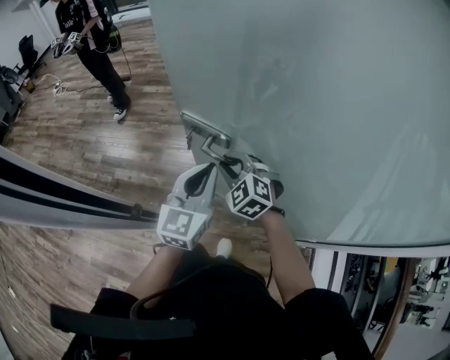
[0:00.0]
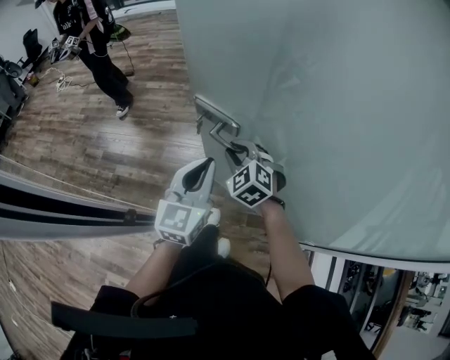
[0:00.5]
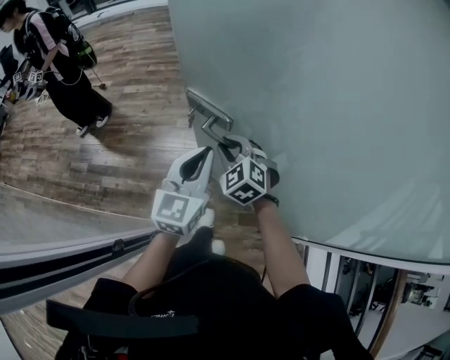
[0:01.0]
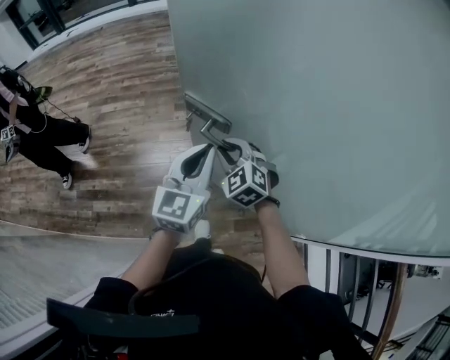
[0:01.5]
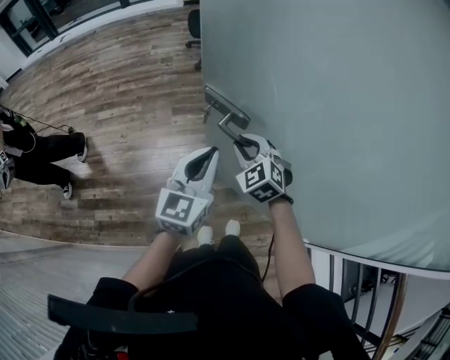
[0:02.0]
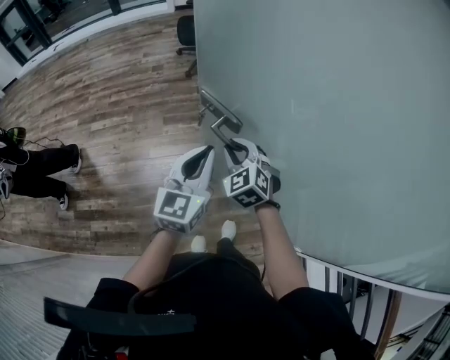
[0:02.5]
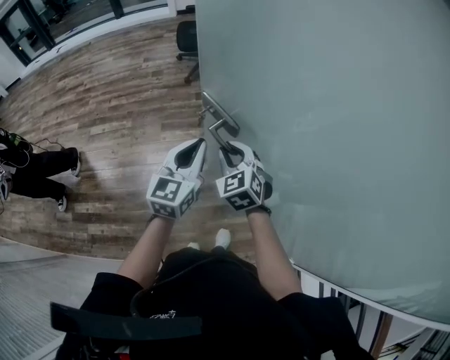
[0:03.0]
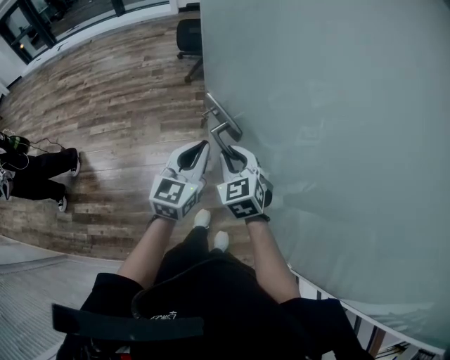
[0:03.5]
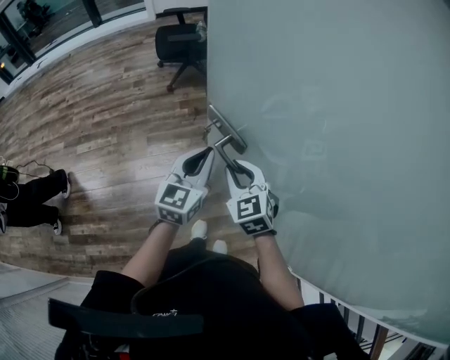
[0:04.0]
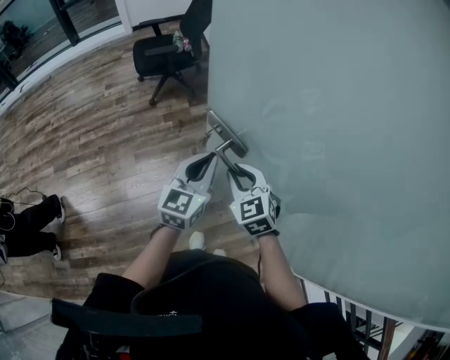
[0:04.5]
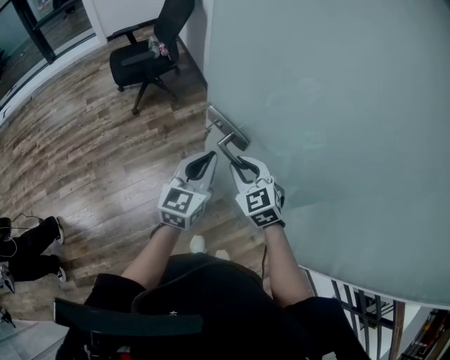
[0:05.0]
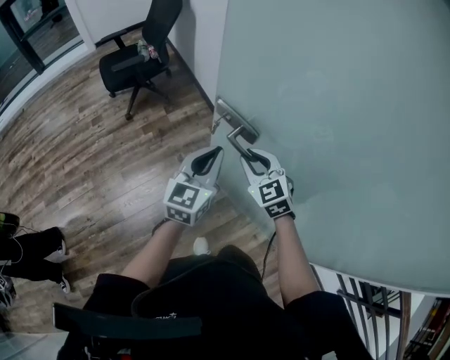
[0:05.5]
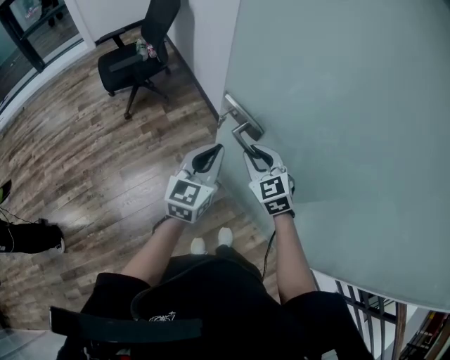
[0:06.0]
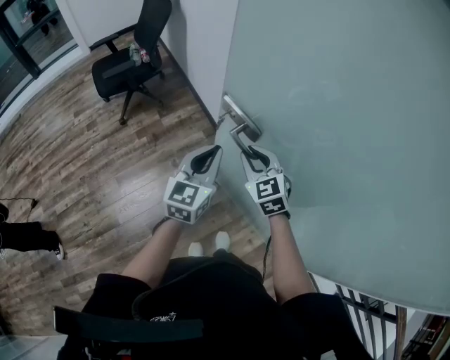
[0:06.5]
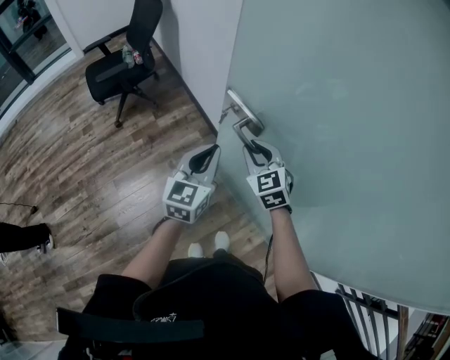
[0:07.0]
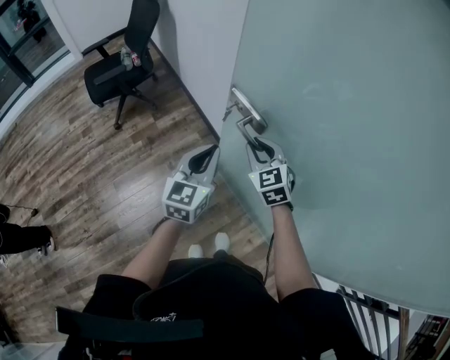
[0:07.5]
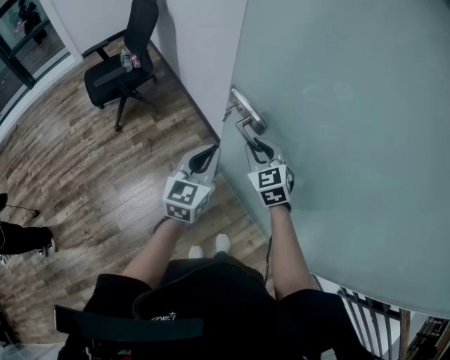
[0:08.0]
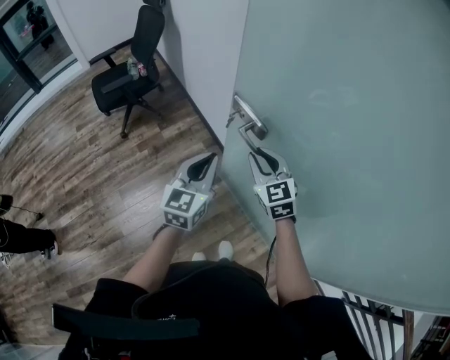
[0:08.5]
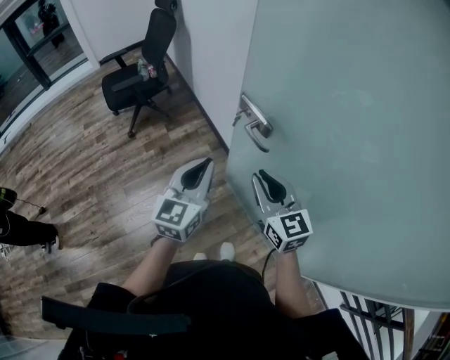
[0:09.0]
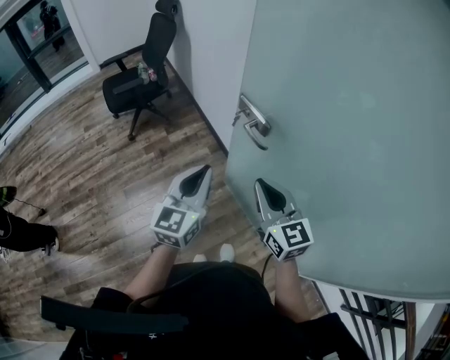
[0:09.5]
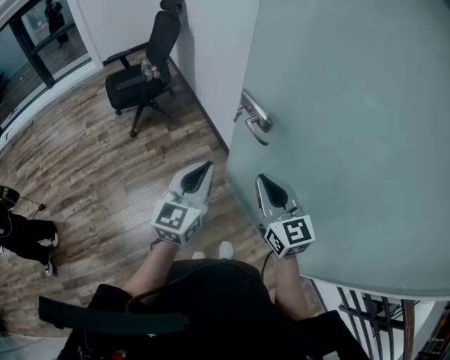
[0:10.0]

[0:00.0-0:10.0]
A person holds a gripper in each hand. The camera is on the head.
0:00.0 to 0:02.0: Both grippers travel together forward and to the right, about 30 cm. The right gripper swivels approximately 20 degrees.
0:02.0 to 0:04.0: Both grippers move forward and to the right, roughly 25 cm. The right gripper changes its angle by approximately 20 degrees.
0:04.0 to 0:06.0: Both grippers travel together forward and to the right, roughly 15 cm.
0:06.0 to 0:08.0: The left gripper moves about 5 cm, while the right gripper goes roughly 5 cm forward.
0:08.0 to 0:10.0: The right gripper travels backward and upward by roughly 20 cm, and turns by roughly 30 degrees; the left gripper shifts approximately 10 cm backward and upward.

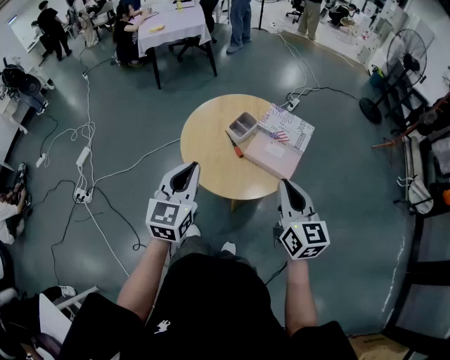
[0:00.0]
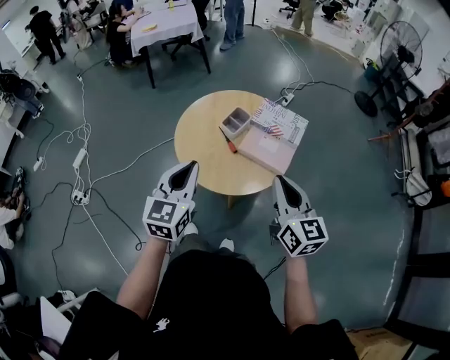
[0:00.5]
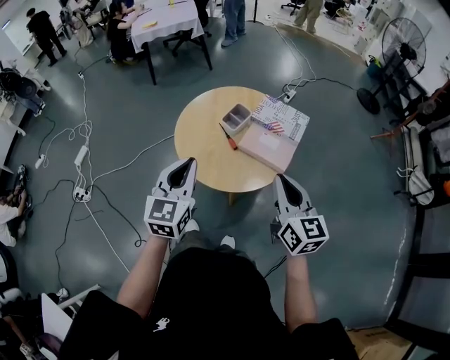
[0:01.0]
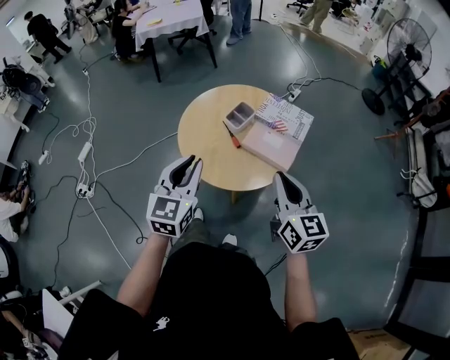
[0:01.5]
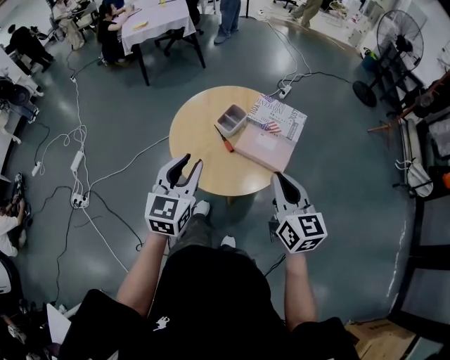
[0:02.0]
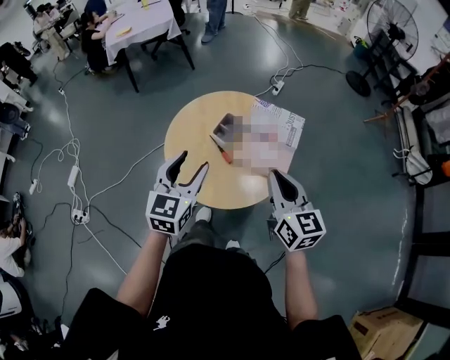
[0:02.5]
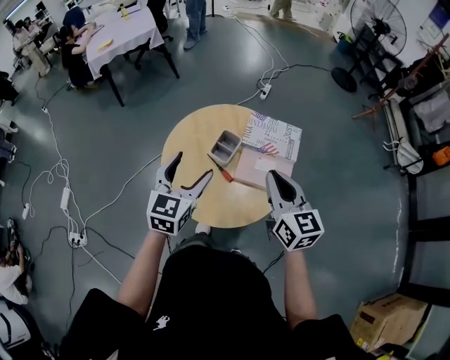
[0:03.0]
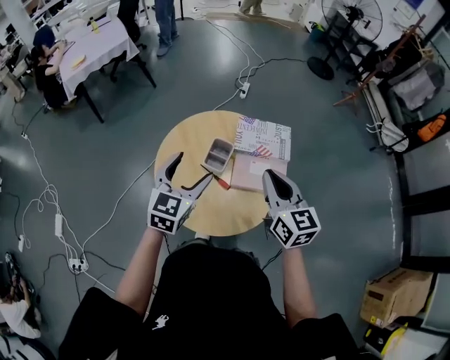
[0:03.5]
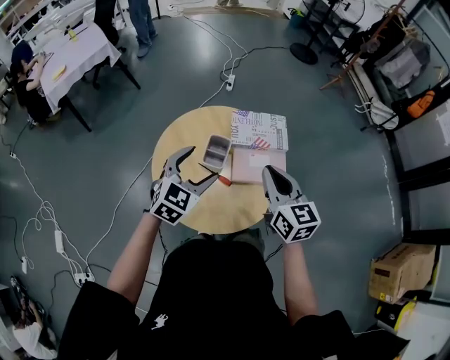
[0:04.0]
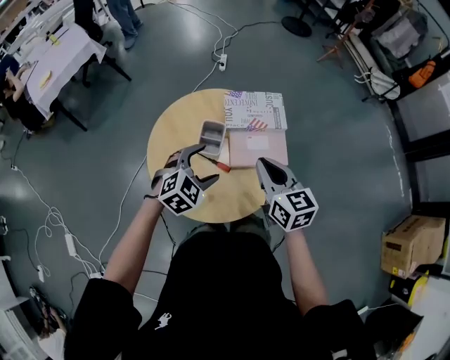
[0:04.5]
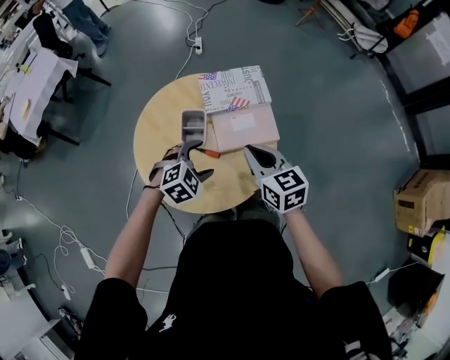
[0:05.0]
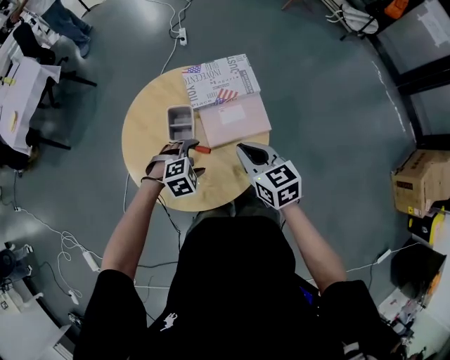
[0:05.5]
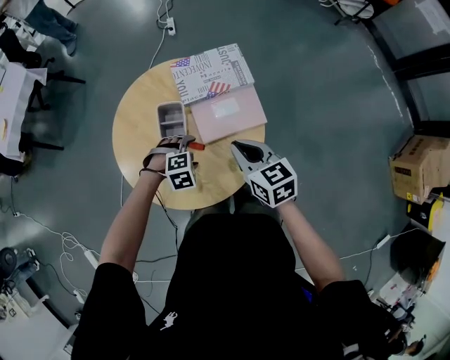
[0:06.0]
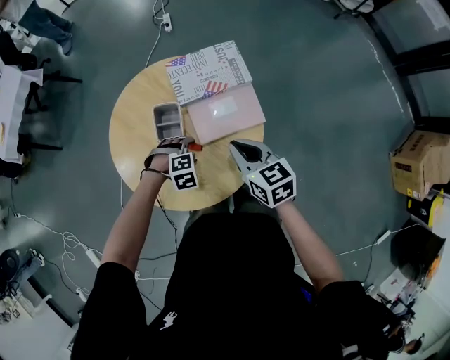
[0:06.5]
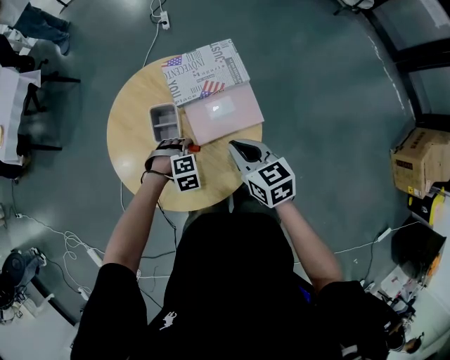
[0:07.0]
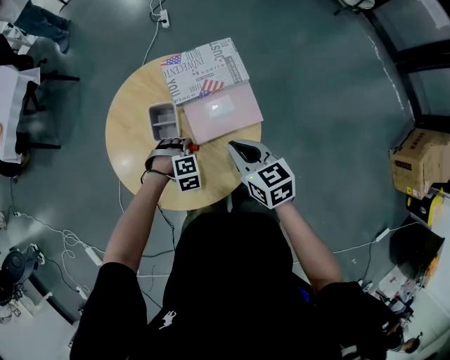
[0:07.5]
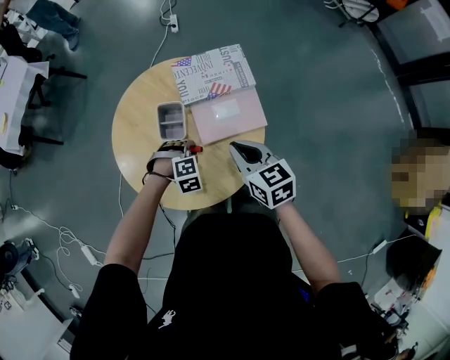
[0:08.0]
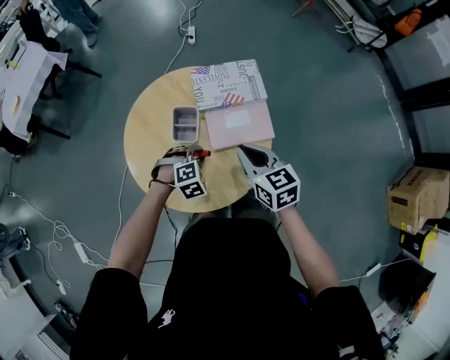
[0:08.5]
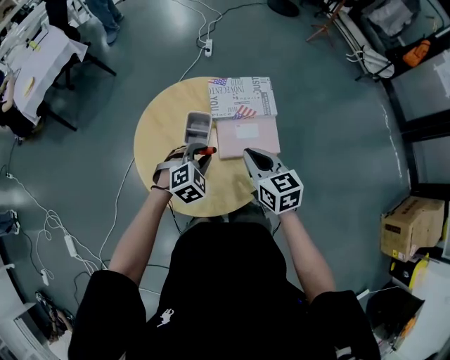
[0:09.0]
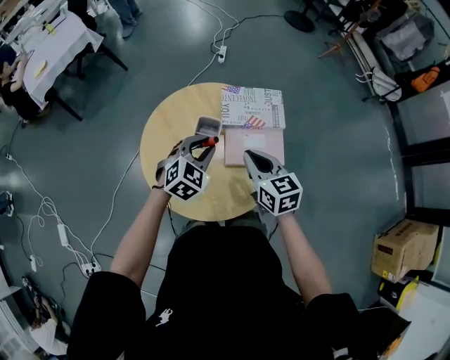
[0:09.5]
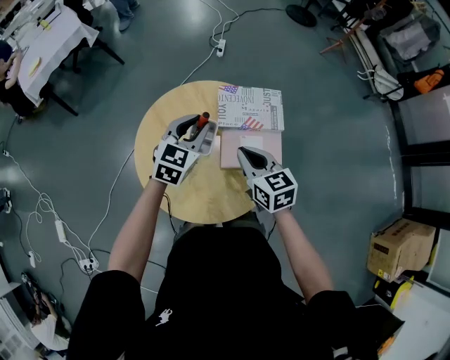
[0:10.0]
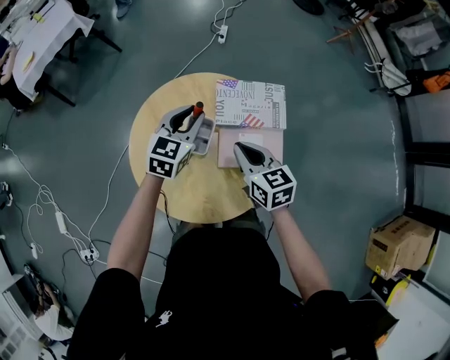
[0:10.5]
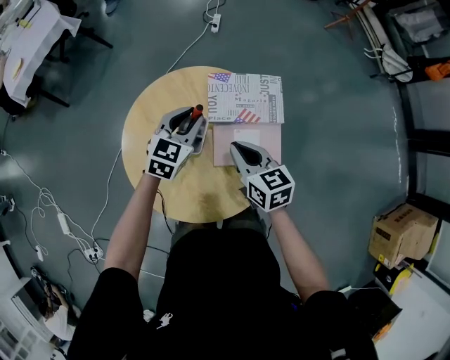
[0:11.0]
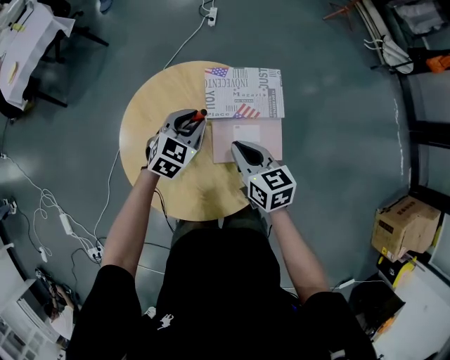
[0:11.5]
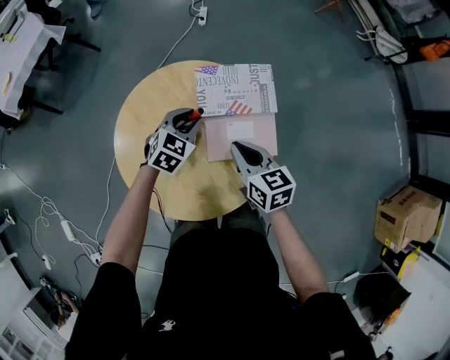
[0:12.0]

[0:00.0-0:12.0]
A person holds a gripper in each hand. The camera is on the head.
0:00.0 to 0:02.0: There are only small adjustments of the grippers.
0:02.0 to 0:04.0: The right gripper shifts by some 20 cm, and rotates approximately 20 degrees. The left gripper shifts by about 20 cm, turns by approximately 50 degrees, and opens its fingers.
0:04.0 to 0:06.0: The right gripper is displaced downward by roughly 15 cm. Meanwhile the left gripper travels downward by approximately 25 cm, and points its fingers approximately 50 degrees further downward.
0:06.0 to 0:08.0: The left gripper closes its fingers.
0:08.0 to 0:10.0: The right gripper shifts roughly 10 cm forward and to the left, while the left gripper shifts about 25 cm upward and forward, and tilts its fingers about 50 degrees upward.
0:10.0 to 0:12.0: The left gripper goes roughly 15 cm downward, and swivels some 20 degrees, while the right gripper heads downward, covering some 5 cm.

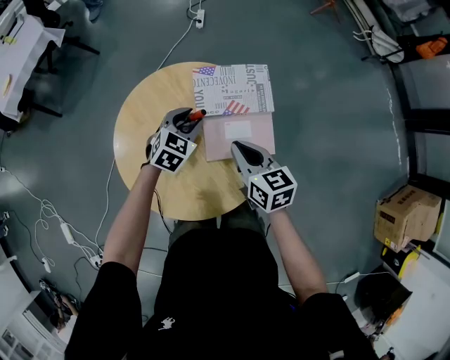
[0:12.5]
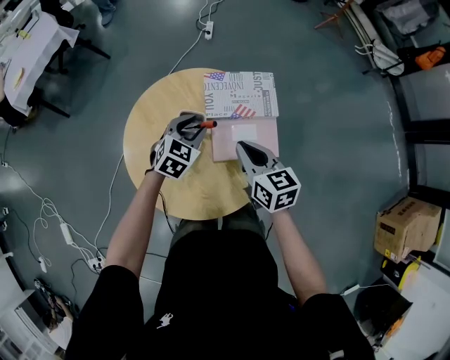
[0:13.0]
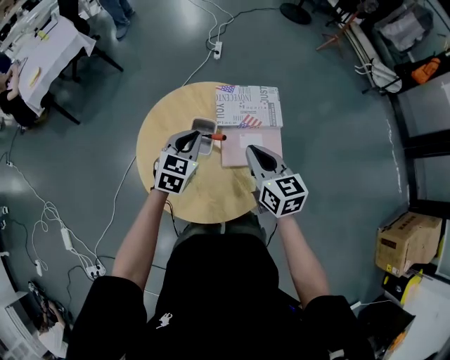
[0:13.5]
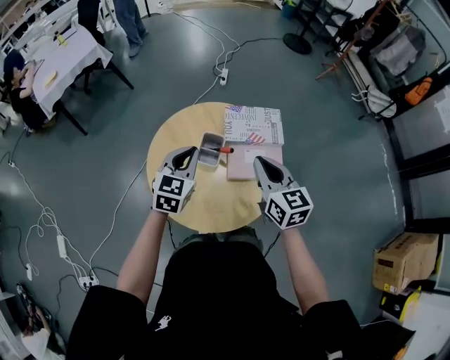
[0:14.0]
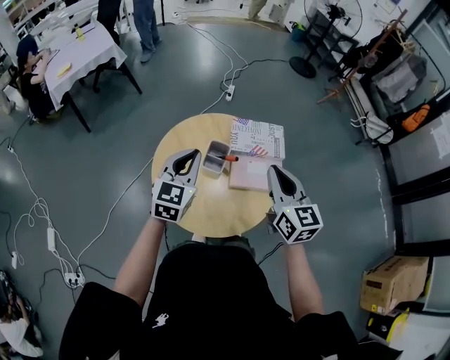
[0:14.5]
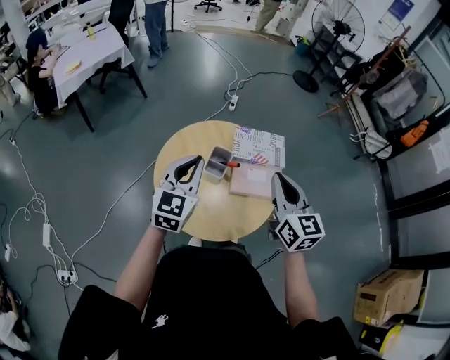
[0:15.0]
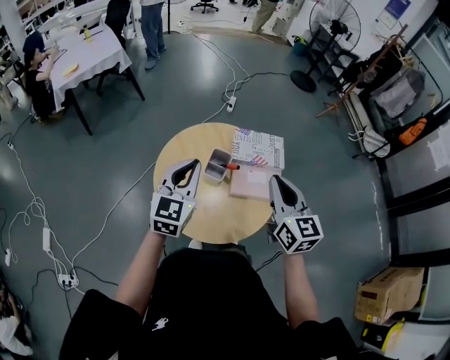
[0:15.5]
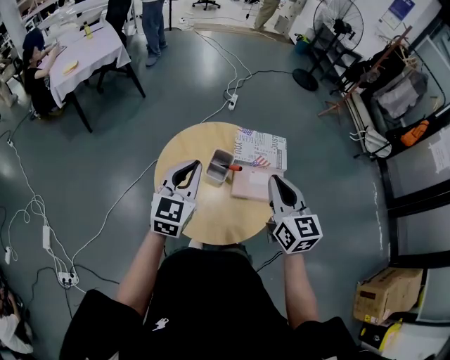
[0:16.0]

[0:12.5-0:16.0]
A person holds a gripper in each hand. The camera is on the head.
0:12.5 to 0:14.5: The right gripper shifts roughly 20 cm upward and backward, and rotates about 30 degrees; the left gripper goes some 30 cm upward, backward and to the left, swivels approximately 40 degrees, and closes.
0:14.5 to 0:16.0: The grippers make only small movements.

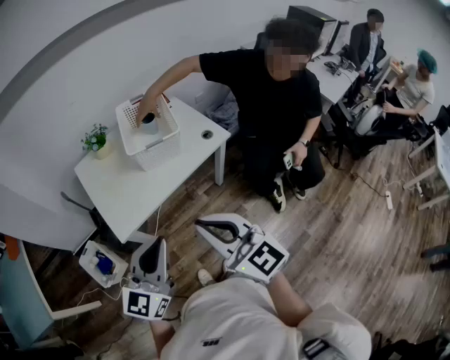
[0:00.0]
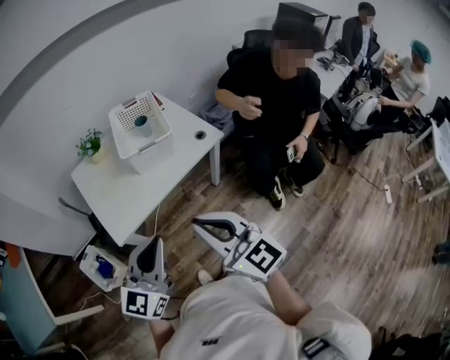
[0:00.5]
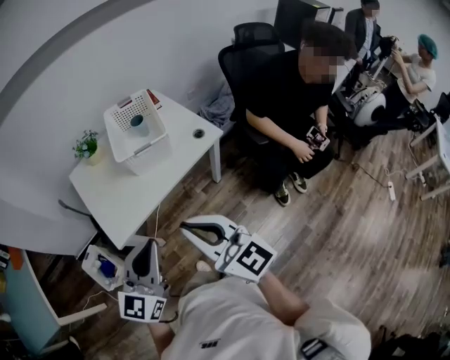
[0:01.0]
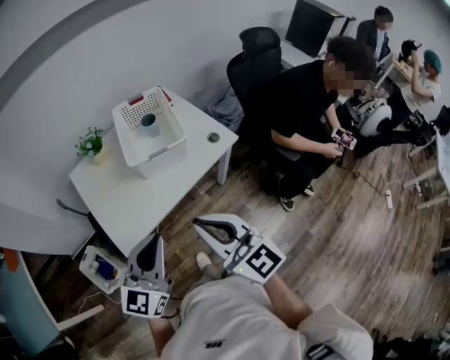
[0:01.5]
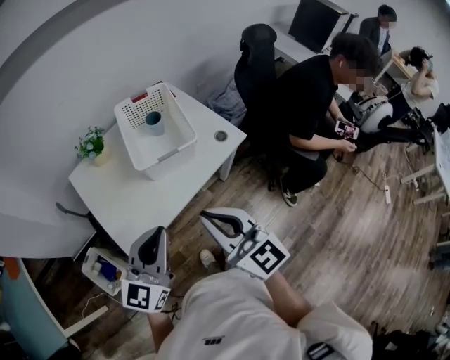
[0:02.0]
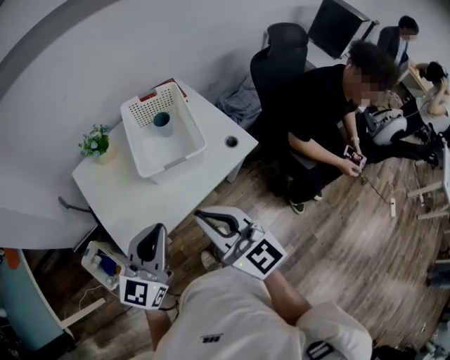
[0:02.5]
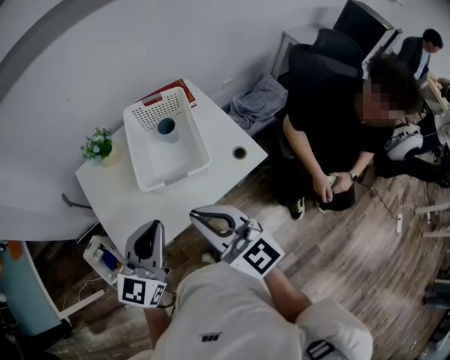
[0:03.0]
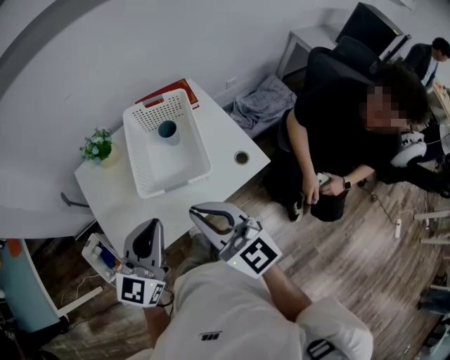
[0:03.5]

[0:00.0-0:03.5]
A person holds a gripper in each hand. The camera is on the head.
0:00.0 to 0:02.0: Both grippers move forward, roughly 15 cm.
0:02.0 to 0:03.5: Both grippers move forward, approximately 15 cm.
